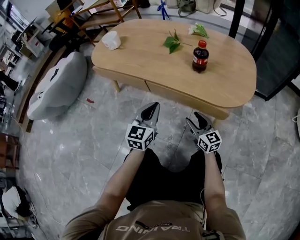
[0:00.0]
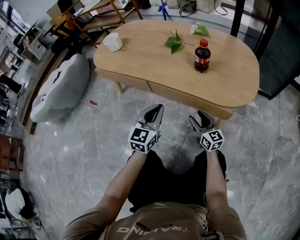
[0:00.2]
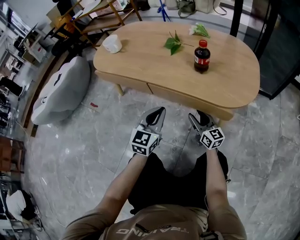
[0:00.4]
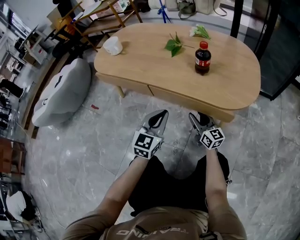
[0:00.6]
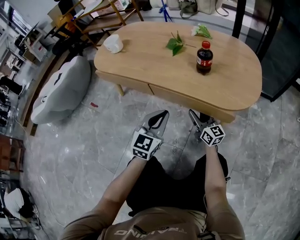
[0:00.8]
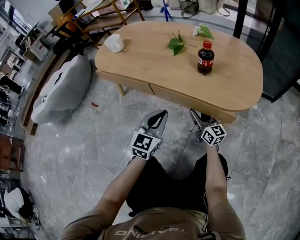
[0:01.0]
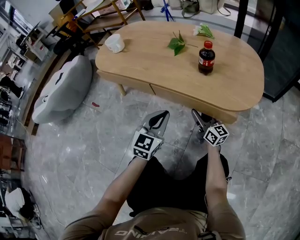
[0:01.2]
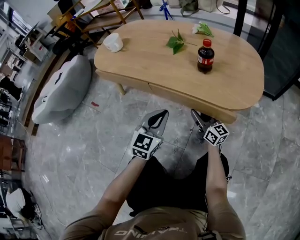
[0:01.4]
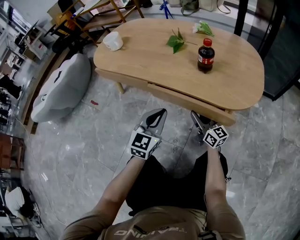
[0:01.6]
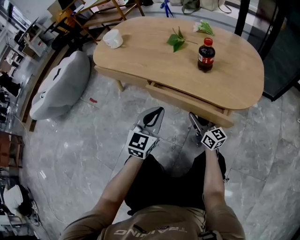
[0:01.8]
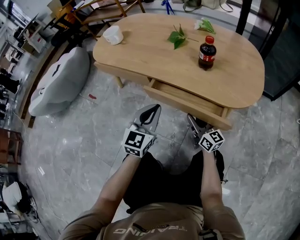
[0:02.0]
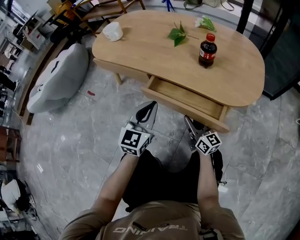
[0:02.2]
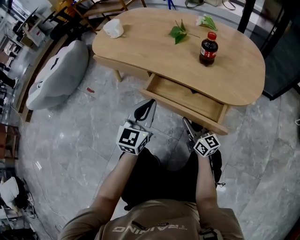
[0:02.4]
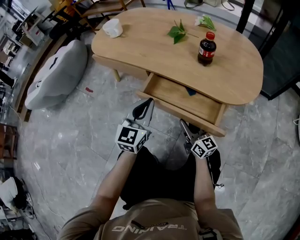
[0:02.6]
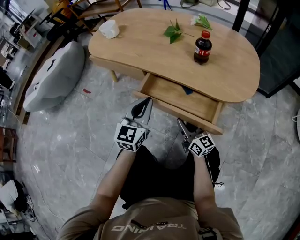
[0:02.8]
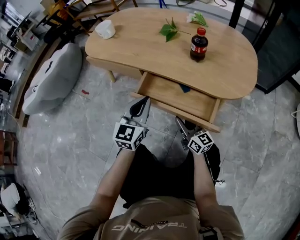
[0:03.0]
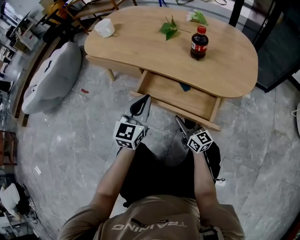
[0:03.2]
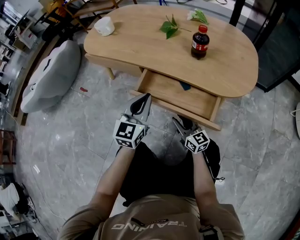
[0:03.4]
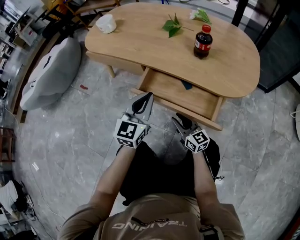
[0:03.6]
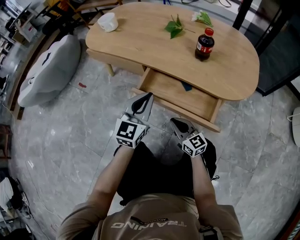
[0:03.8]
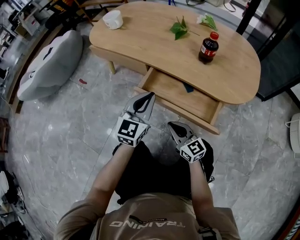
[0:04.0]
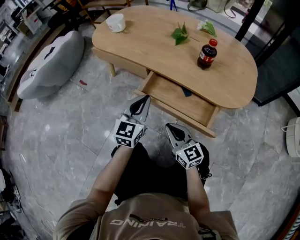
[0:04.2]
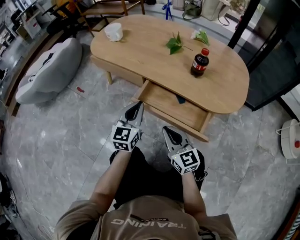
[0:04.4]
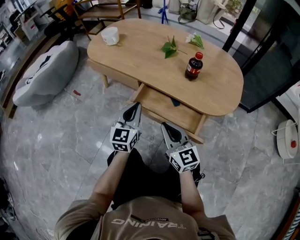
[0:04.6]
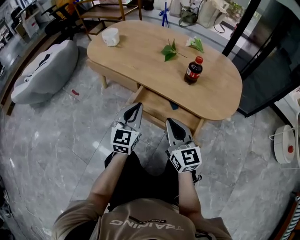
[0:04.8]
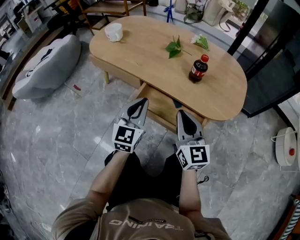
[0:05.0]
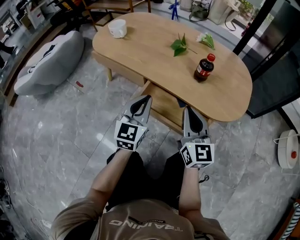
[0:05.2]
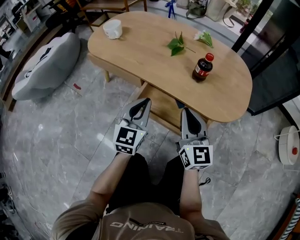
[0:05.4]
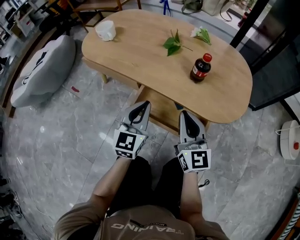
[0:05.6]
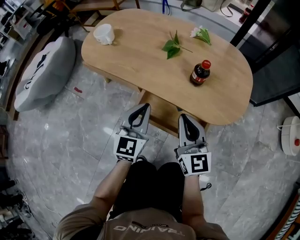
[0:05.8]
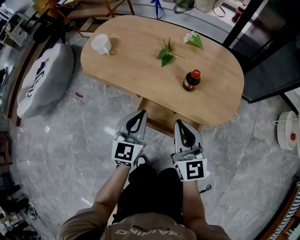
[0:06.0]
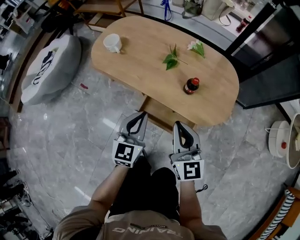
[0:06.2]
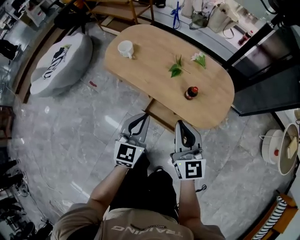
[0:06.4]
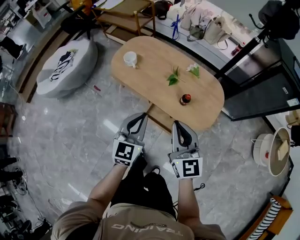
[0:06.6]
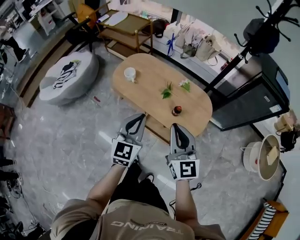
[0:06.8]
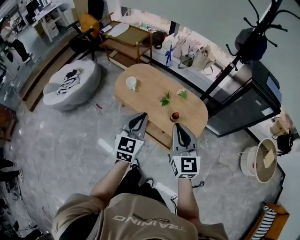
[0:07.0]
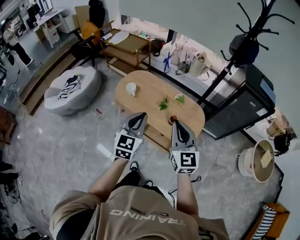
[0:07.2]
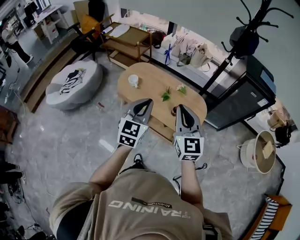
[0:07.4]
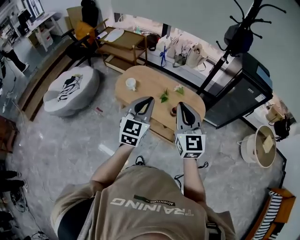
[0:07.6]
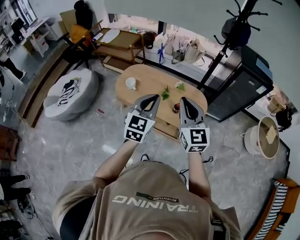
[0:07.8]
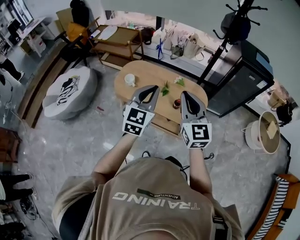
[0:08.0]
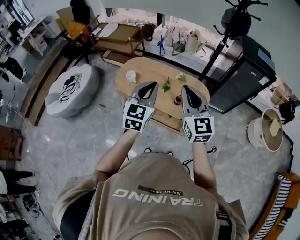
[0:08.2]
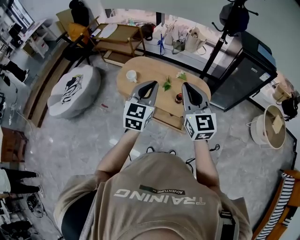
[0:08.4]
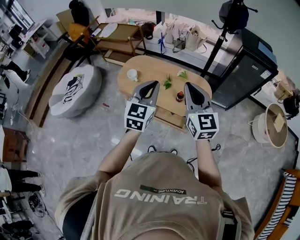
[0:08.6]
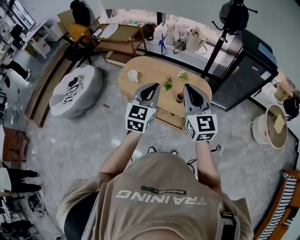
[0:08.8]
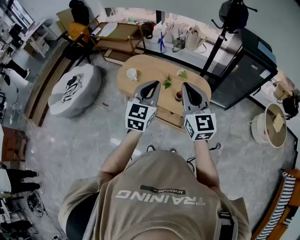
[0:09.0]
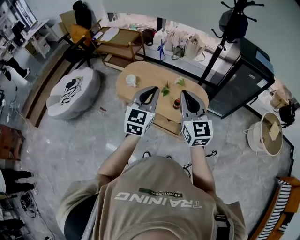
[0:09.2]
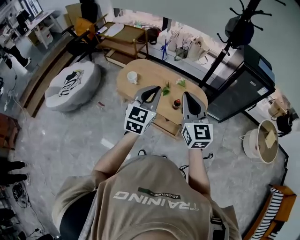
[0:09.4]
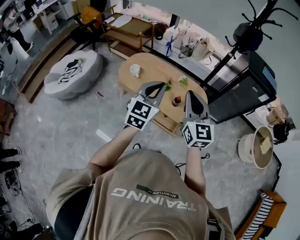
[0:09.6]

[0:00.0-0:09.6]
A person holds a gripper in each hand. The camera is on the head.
0:00.0 to 0:01.6: The grippers move only a little.
0:01.6 to 0:03.2: The right gripper heads backward, covering roughly 10 cm.
0:03.2 to 0:04.8: The right gripper travels upward by approximately 20 cm, and closes.
0:04.8 to 0:06.4: The grippers both shift upward by some 30 cm.
0:06.4 to 0:08.0: The two grippers go about 35 cm upward.
0:08.0 to 0:09.6: The grippers stay close to where they were, moving slightly.

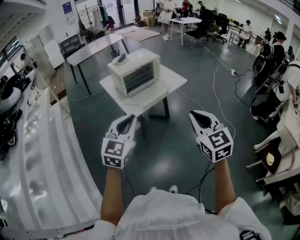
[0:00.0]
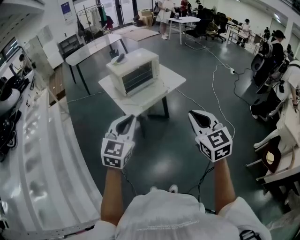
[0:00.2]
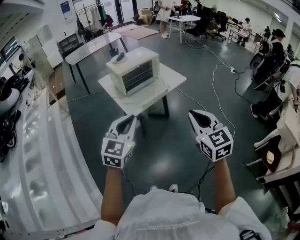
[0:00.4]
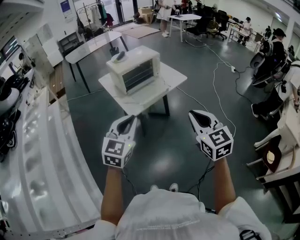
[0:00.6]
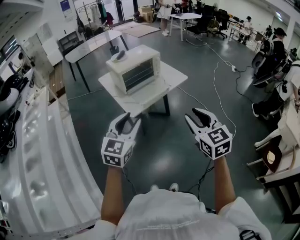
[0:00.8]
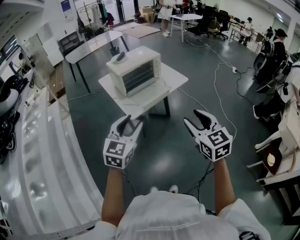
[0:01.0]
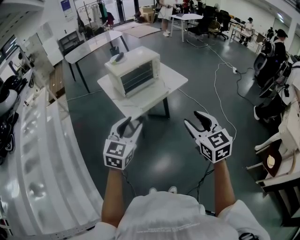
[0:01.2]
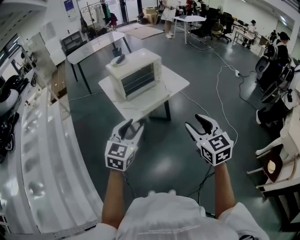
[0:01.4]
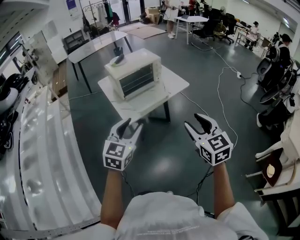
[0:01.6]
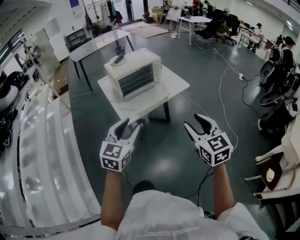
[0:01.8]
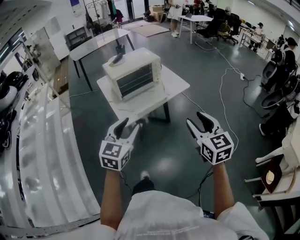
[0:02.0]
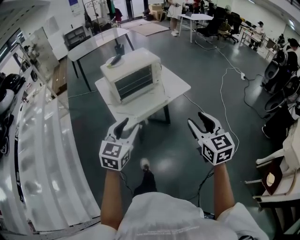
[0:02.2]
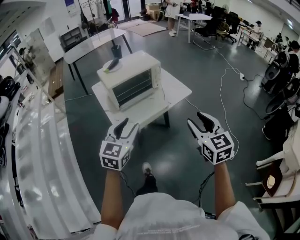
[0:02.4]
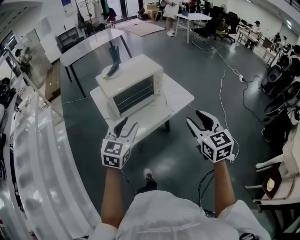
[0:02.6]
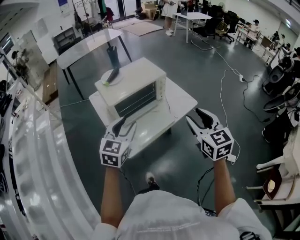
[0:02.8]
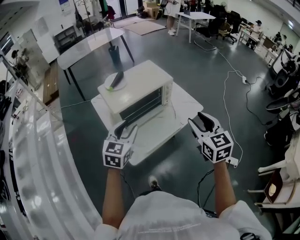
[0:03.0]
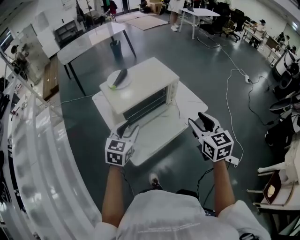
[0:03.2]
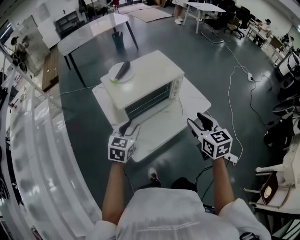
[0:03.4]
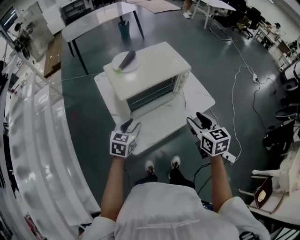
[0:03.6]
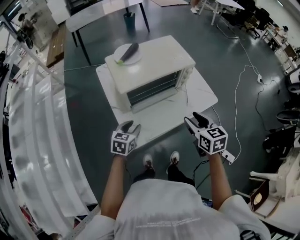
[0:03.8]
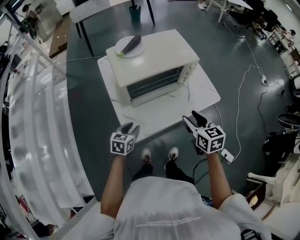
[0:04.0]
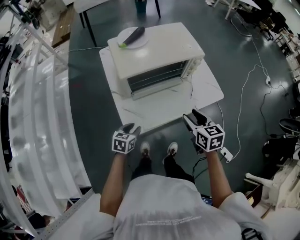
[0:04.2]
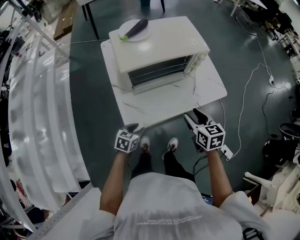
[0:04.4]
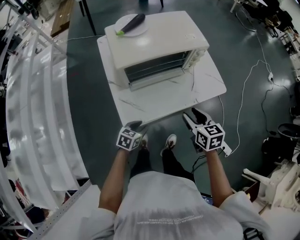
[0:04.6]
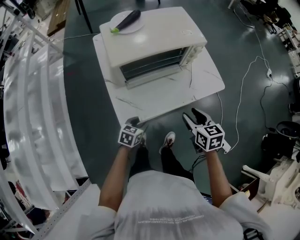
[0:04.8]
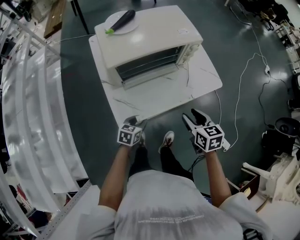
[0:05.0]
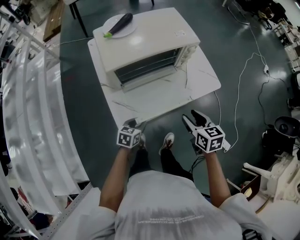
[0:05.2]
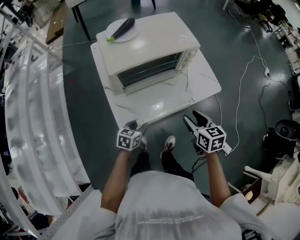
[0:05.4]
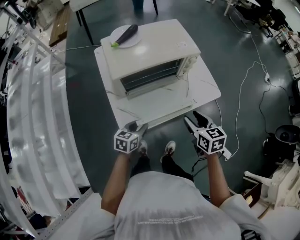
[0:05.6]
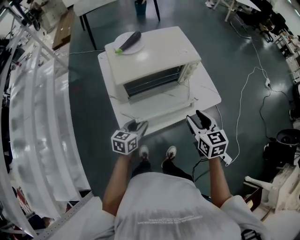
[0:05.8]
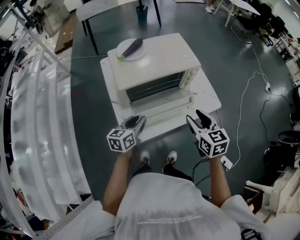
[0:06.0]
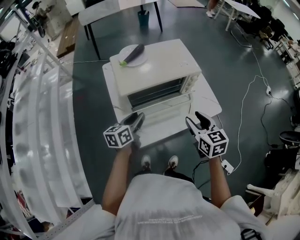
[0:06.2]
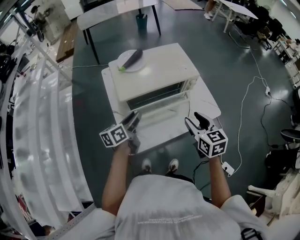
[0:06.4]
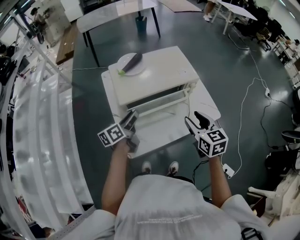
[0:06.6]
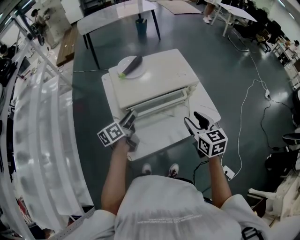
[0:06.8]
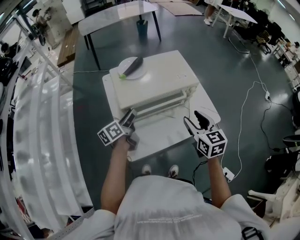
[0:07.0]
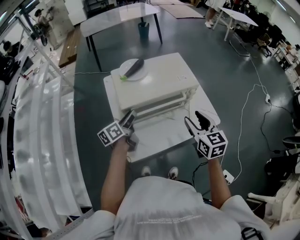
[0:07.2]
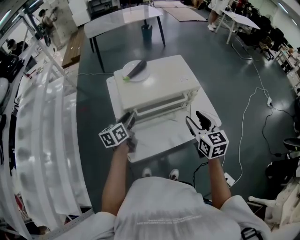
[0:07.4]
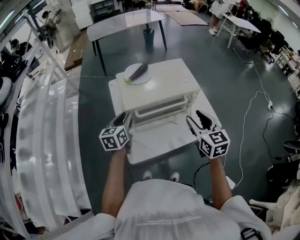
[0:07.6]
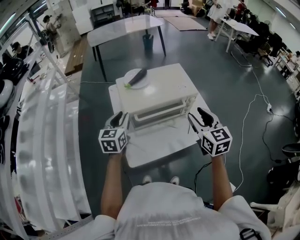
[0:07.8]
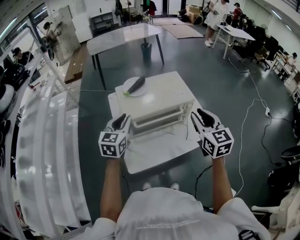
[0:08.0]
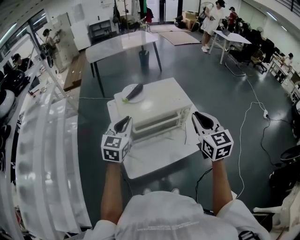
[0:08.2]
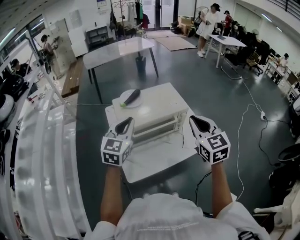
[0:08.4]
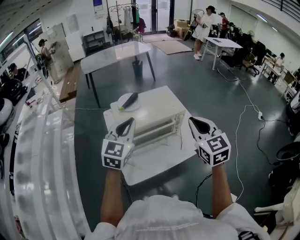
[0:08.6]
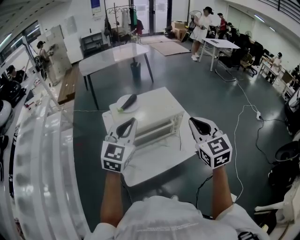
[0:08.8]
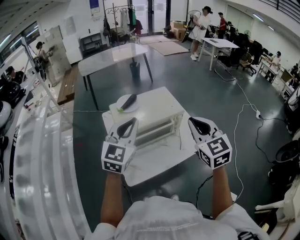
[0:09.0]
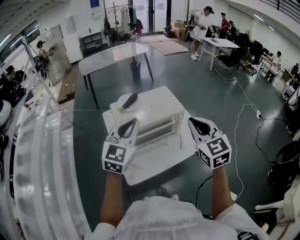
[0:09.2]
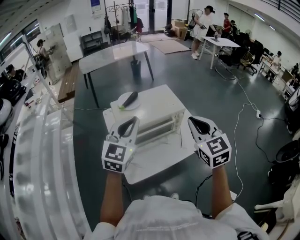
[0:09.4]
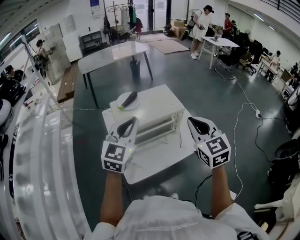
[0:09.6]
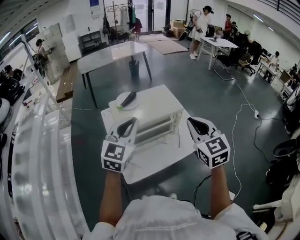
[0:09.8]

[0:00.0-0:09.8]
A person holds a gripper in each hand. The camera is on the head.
0:00.0 to 0:01.4: The two grippers go some 5 cm forward. The right gripper opens its fingers; the left gripper opens its fingers.
0:01.4 to 0:02.8: Both grippers move forward, roughly 30 cm.
0:02.8 to 0:04.2: The right gripper goes approximately 25 cm downward and forward, and turns by some 30 degrees, while the left gripper goes approximately 30 cm downward, and changes its angle by about 40 degrees.
0:04.2 to 0:05.6: The left gripper heads to the right, covering approximately 5 cm.
0:05.6 to 0:07.0: The left gripper is displaced forward, upward and to the left by roughly 25 cm, and swivels roughly 50 degrees. The right gripper travels upward and forward by about 15 cm.
0:07.0 to 0:08.4: Both grippers move upward, about 15 cm. The left gripper rotates around the line of its fingers by approximately 70 degrees, clockwise from behind, and closes. The right gripper closes its fingers.
0:08.4 to 0:09.8: The left gripper changes place by approximately 5 cm.

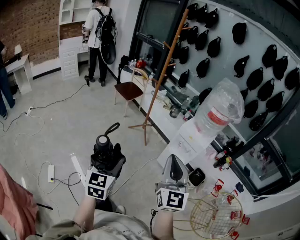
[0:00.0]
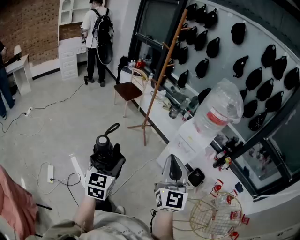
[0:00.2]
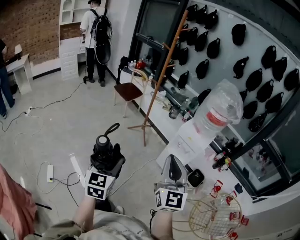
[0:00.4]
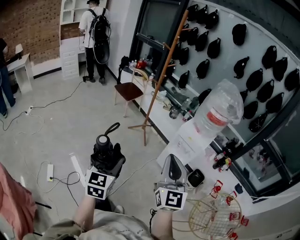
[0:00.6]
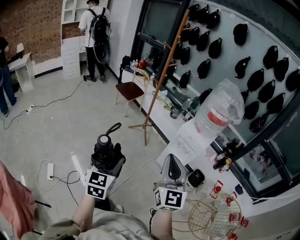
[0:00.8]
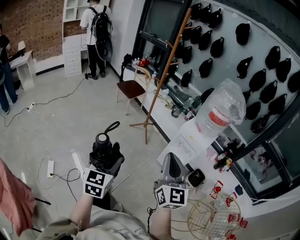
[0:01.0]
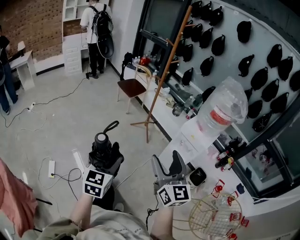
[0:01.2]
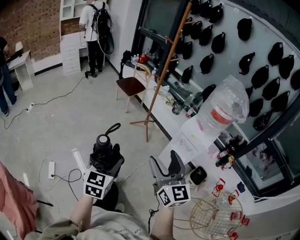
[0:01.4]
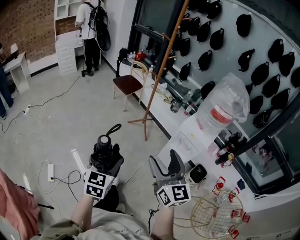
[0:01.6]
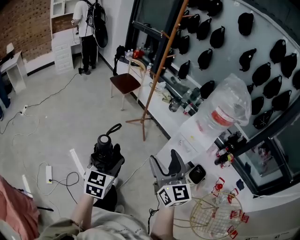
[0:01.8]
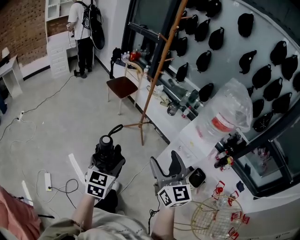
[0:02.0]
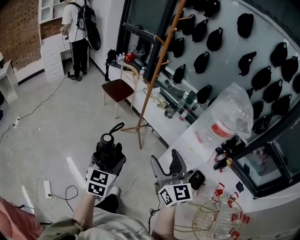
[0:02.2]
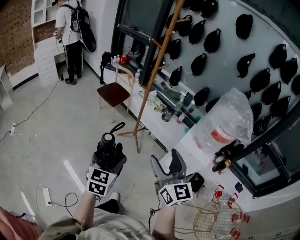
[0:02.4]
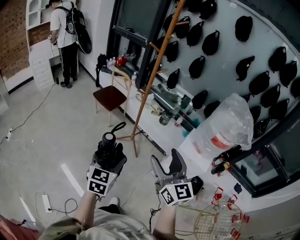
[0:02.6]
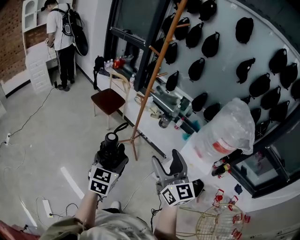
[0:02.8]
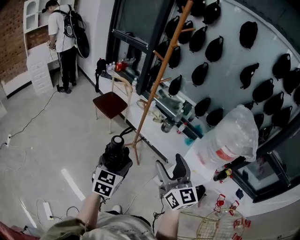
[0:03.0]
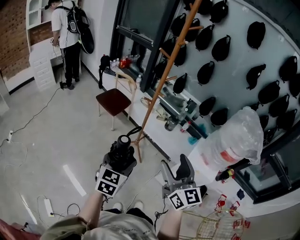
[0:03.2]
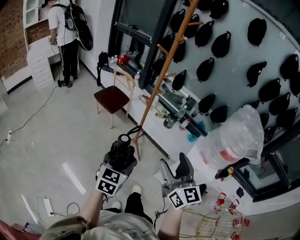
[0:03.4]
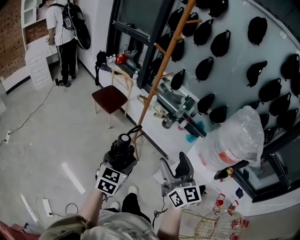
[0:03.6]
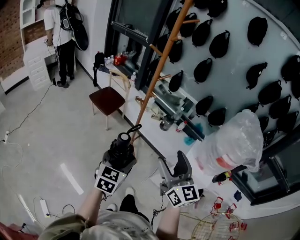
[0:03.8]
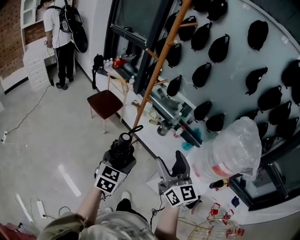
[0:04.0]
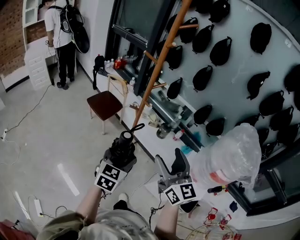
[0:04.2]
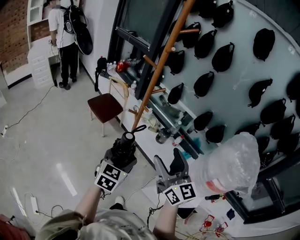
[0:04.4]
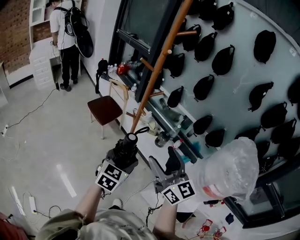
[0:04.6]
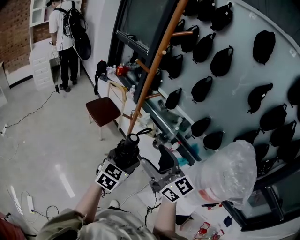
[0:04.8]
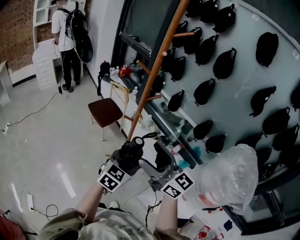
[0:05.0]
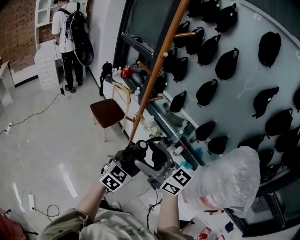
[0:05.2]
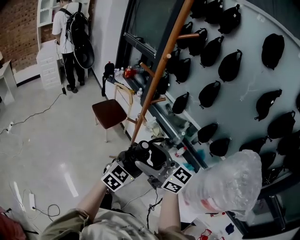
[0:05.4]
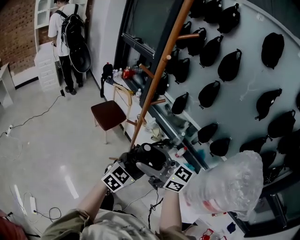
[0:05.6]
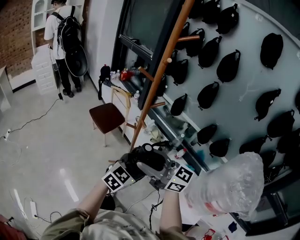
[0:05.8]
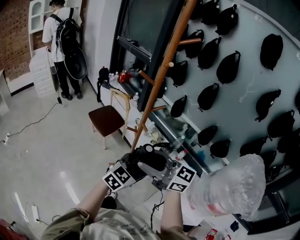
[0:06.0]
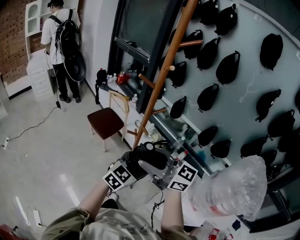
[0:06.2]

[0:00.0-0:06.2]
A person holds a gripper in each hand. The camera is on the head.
0:00.0 to 0:01.6: The left gripper moves approximately 5 cm, while the right gripper goes approximately 5 cm forward, rotates about 20 degrees, and opens.
0:01.6 to 0:03.2: The two grippers go some 35 cm forward.
0:03.2 to 0:04.6: The left gripper travels forward and to the right by some 20 cm. Meanwhile the right gripper moves forward, some 20 cm.
0:04.6 to 0:06.2: The right gripper moves forward and to the left, some 15 cm, turns by approximately 40 degrees, and closes. The left gripper travels forward and to the right by some 10 cm, and changes its angle by some 20 degrees.
